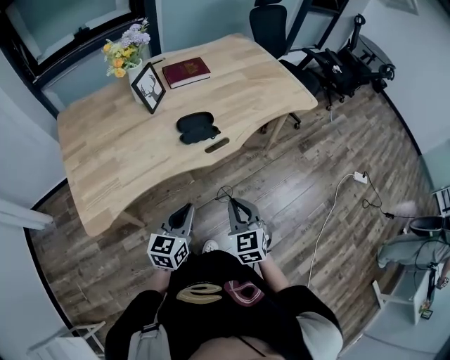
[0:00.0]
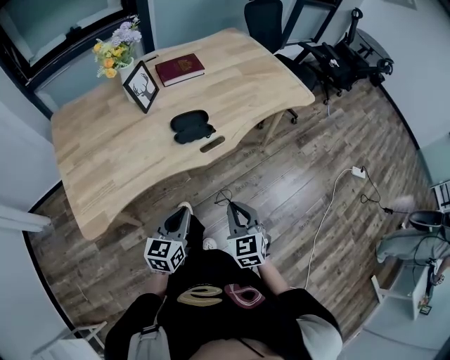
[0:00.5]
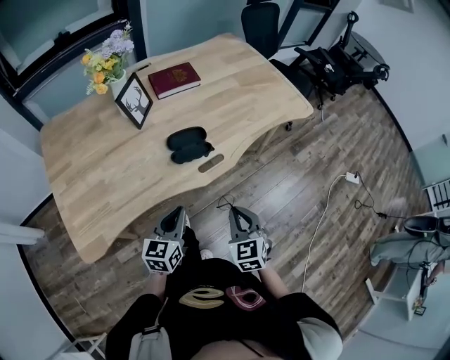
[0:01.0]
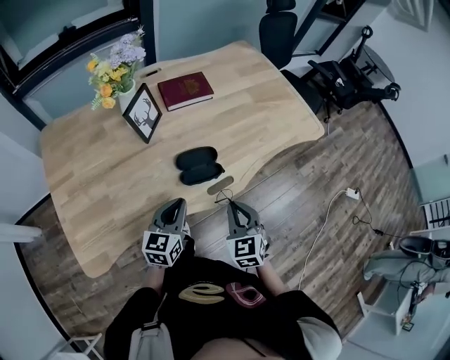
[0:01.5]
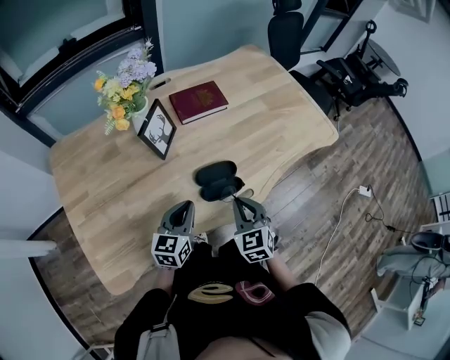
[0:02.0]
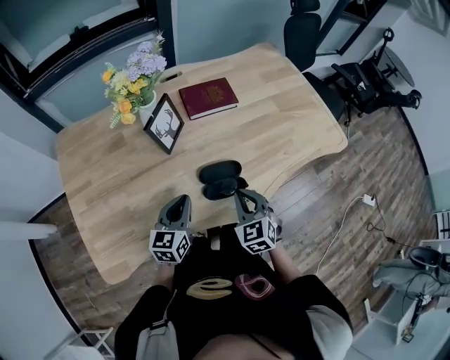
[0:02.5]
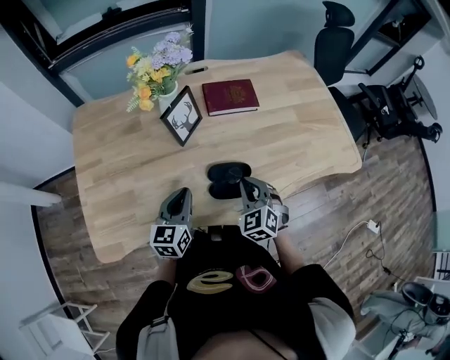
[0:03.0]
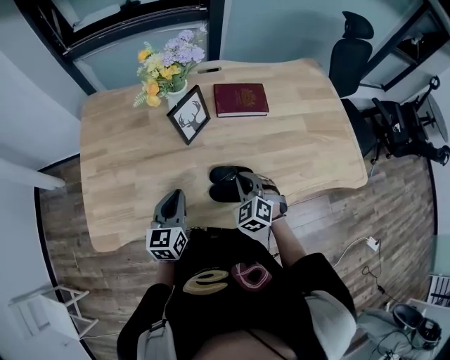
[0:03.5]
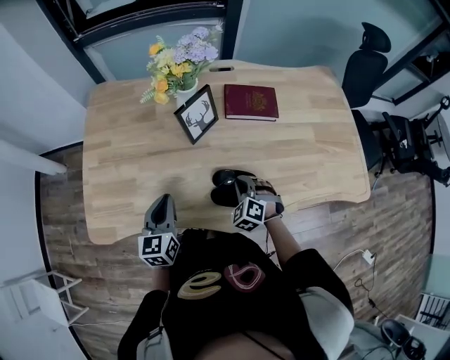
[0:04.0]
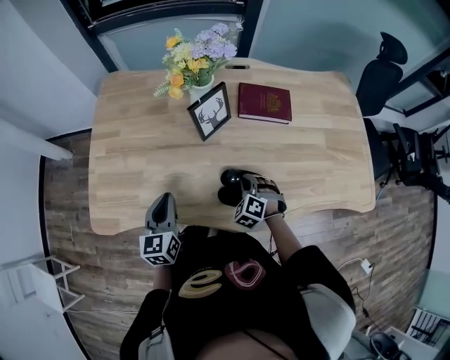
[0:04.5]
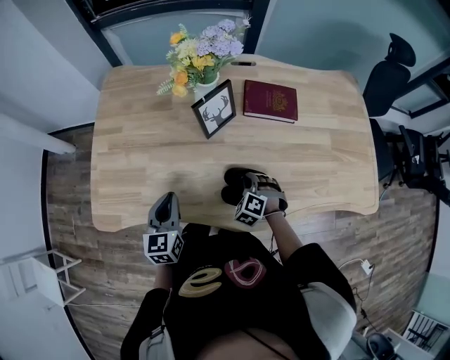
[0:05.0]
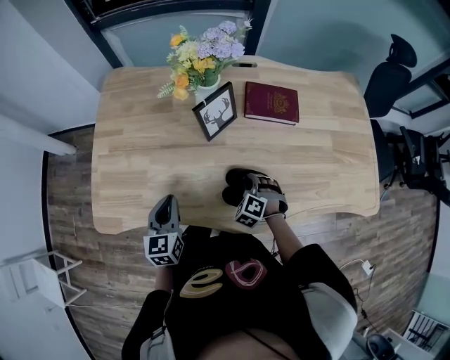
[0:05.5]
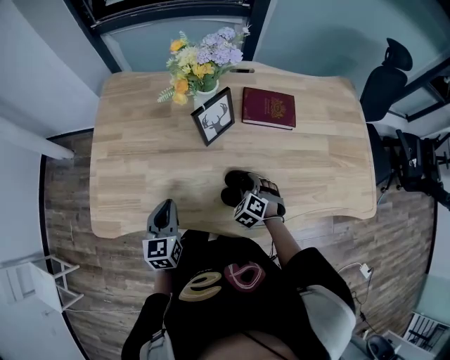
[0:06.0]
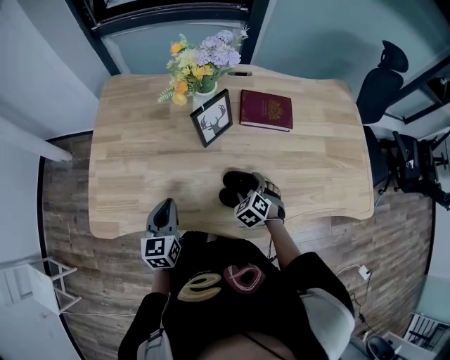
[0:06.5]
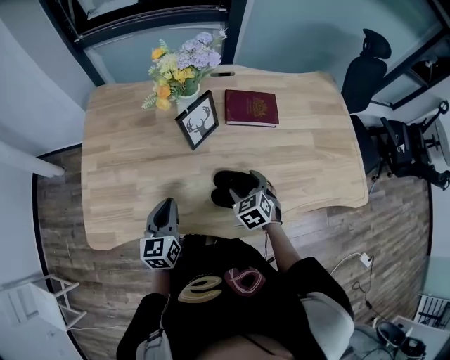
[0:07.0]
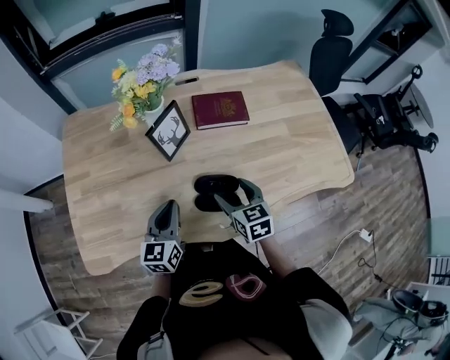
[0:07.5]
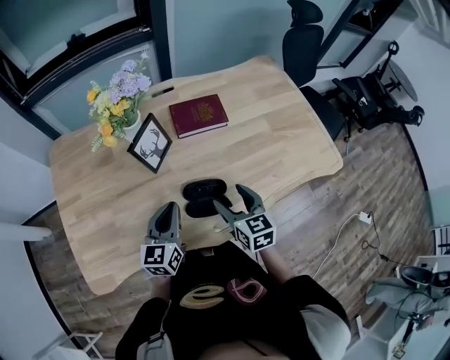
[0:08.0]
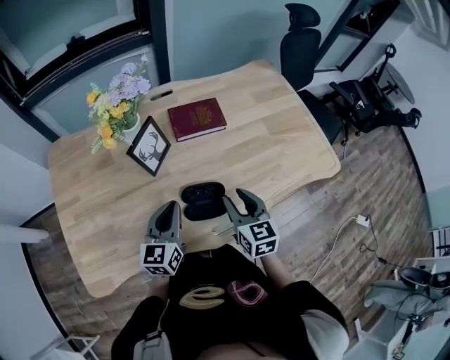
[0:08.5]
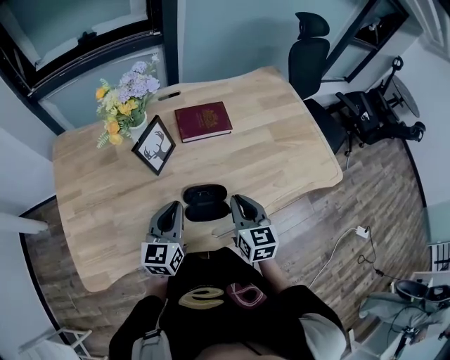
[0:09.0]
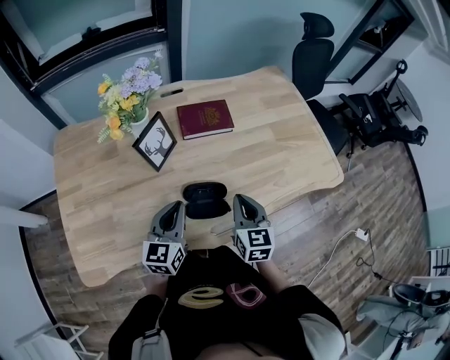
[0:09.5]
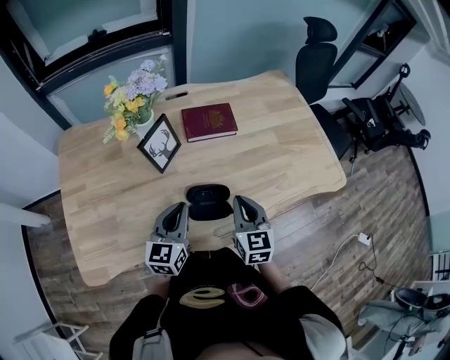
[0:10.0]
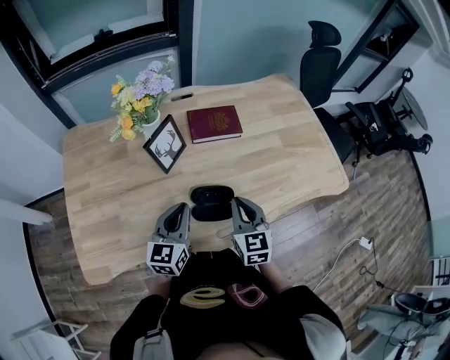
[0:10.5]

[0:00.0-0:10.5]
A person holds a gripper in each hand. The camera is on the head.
0:00.0 to 0:02.0: Both grippers travel together forward and to the left, roughly 30 cm.
0:02.0 to 0:04.0: The right gripper moves some 15 cm, and twists roughly 50 degrees counterclockwise, seen from behind, while the left gripper moves some 10 cm, and turns by roughly 40 degrees.
0:04.0 to 0:06.5: The right gripper opens its fingers.
0:06.5 to 0:08.5: The left gripper moves to the right and forward, about 15 cm, and rotates approximately 30 degrees. The right gripper is displaced upward and to the right by roughly 20 cm, rotates around the line of its fingers by roughly 50 degrees, clockwise from behind, and closes.
0:08.5 to 0:10.5: The right gripper closes up.

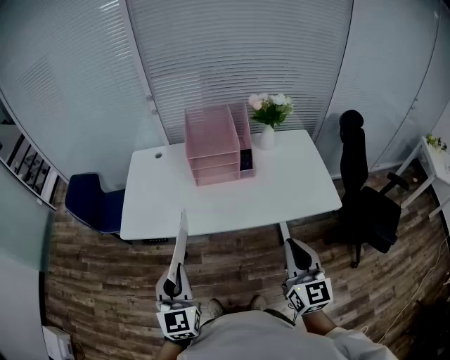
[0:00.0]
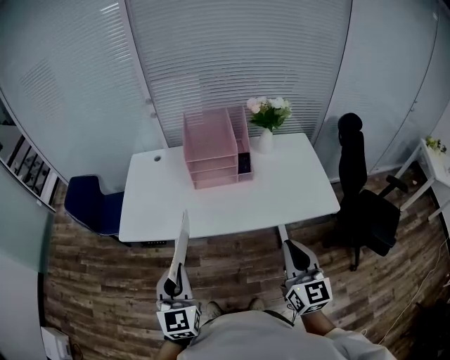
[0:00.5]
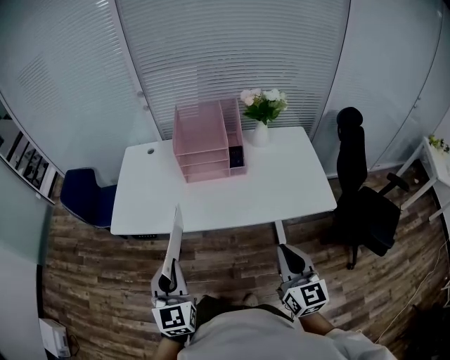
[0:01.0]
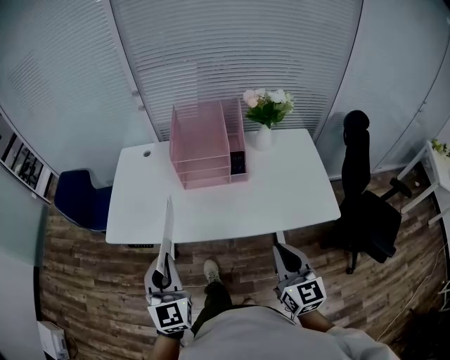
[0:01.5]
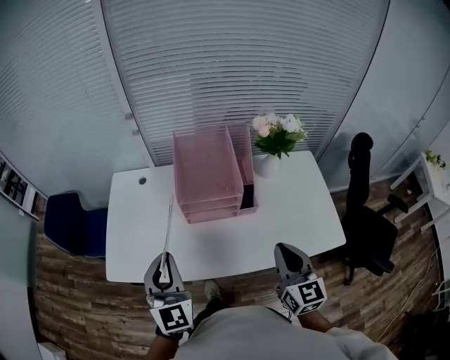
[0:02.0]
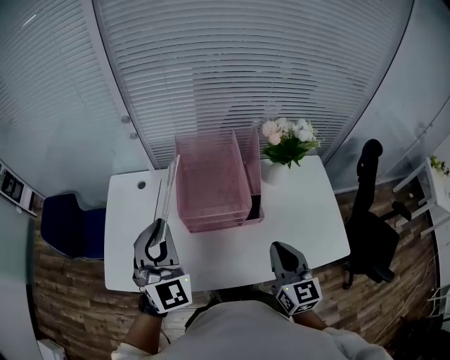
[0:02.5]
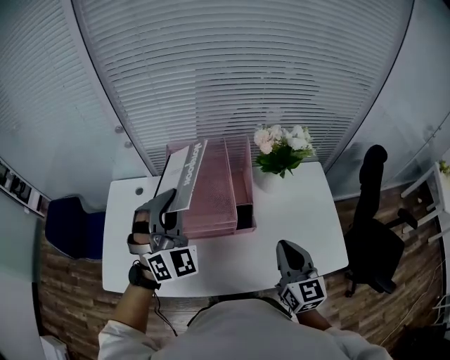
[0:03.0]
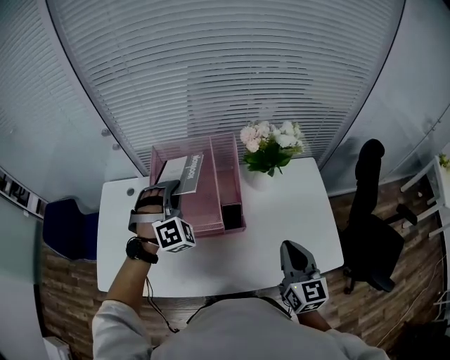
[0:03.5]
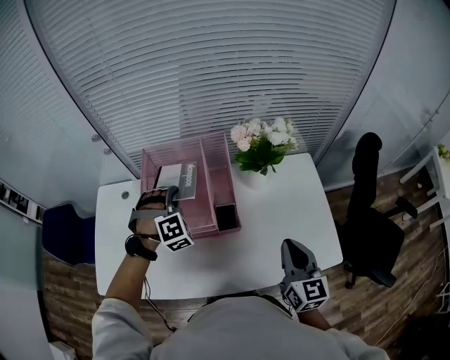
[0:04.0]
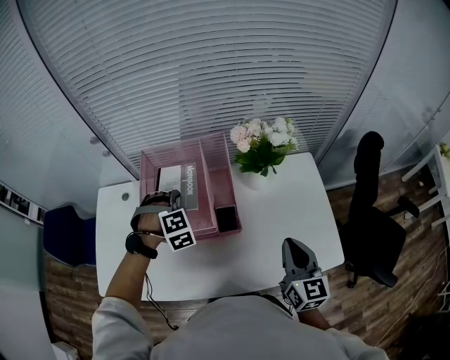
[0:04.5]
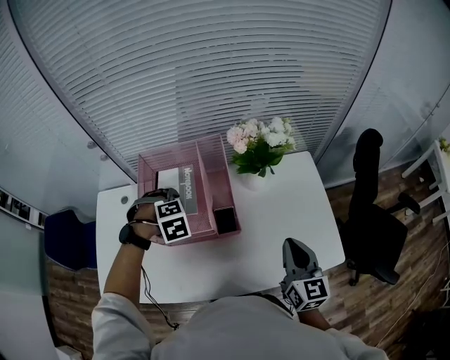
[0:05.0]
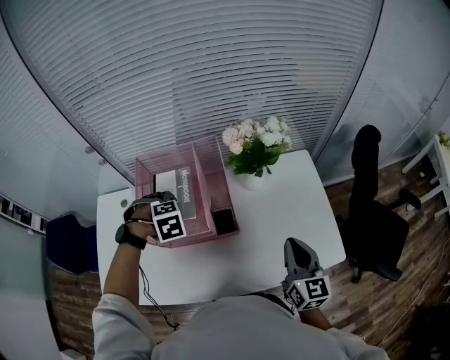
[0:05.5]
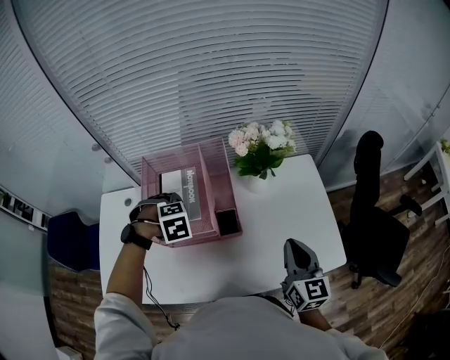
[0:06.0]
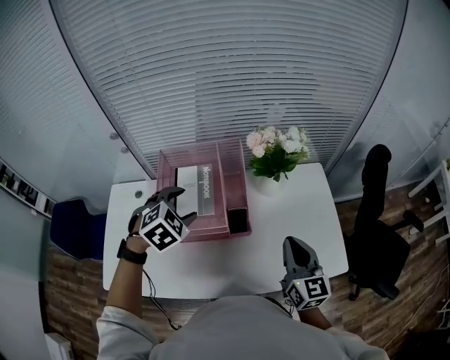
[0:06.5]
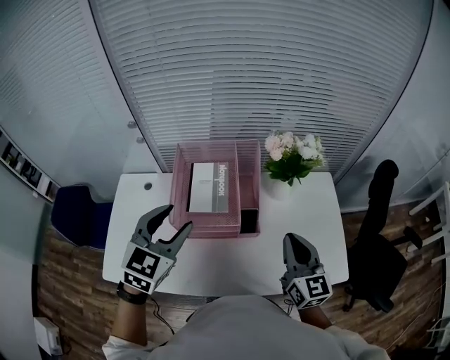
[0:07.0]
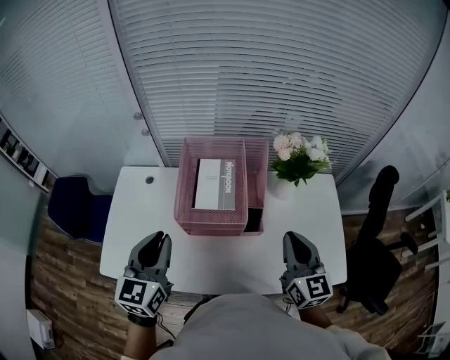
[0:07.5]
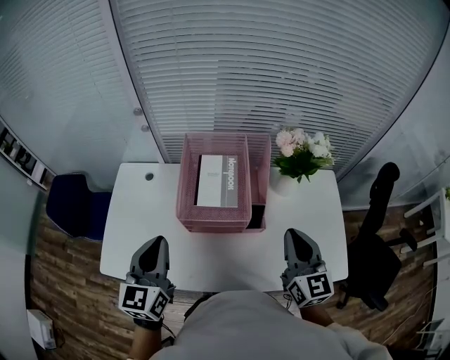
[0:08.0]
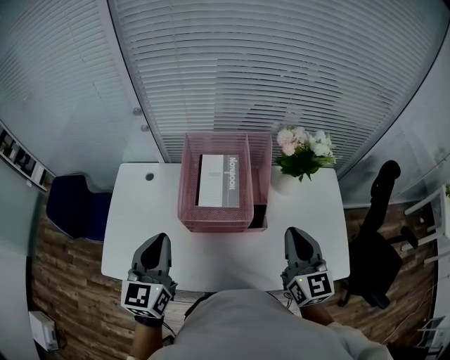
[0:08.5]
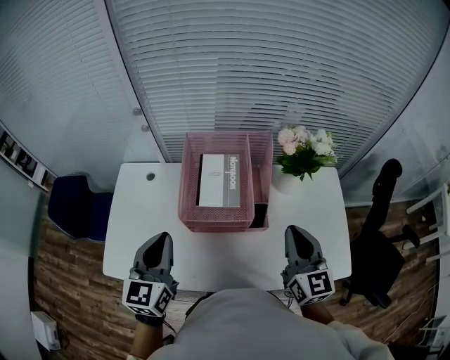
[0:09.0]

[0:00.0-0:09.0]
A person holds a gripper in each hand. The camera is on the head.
0:00.0 to 0:02.0: The grippers both shift forward by about 25 cm.
0:02.0 to 0:04.5: The right gripper shifts about 20 cm to the right and forward; the left gripper shifts approximately 35 cm forward, to the right and downward, rotates around the line of its fingers by about 70 degrees, clockwise from behind, and opens its fingers.
0:04.5 to 0:07.0: The left gripper goes approximately 20 cm upward, and tilts its fingers some 30 degrees upward. The right gripper moves about 10 cm.
0:07.0 to 0:09.0: The left gripper is displaced to the left by approximately 10 cm, swivels approximately 30 degrees, and closes up, while the right gripper changes place by some 5 cm.

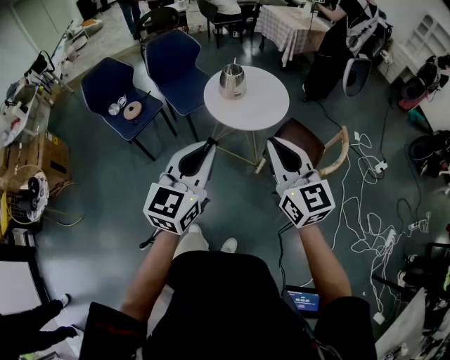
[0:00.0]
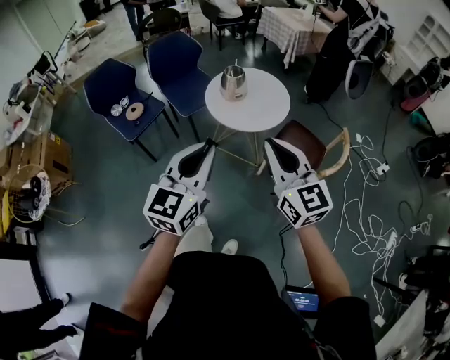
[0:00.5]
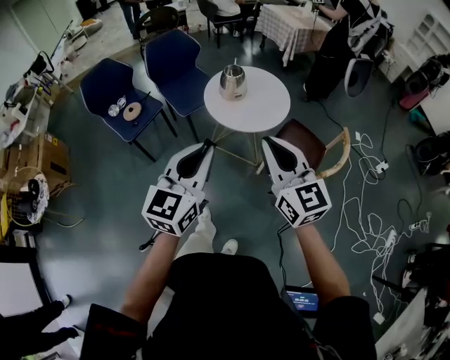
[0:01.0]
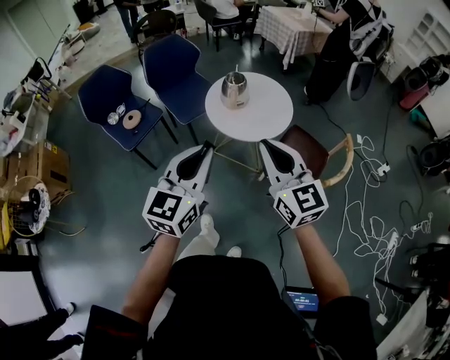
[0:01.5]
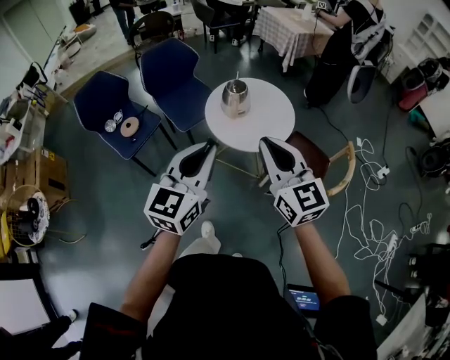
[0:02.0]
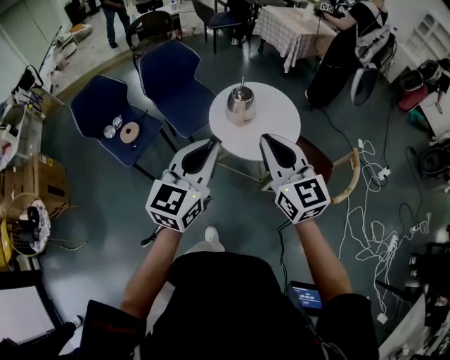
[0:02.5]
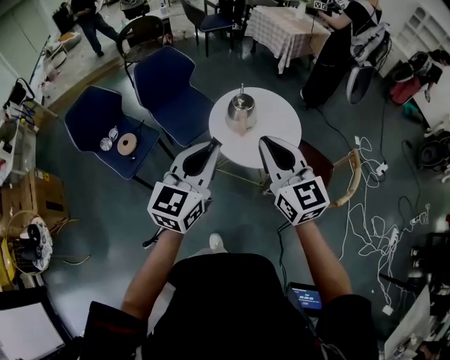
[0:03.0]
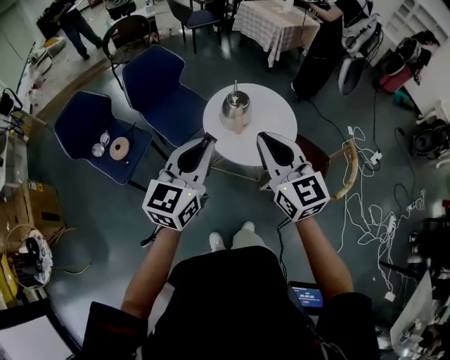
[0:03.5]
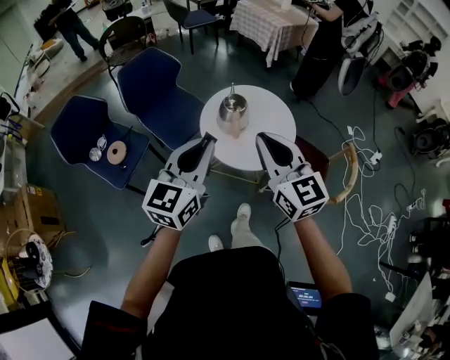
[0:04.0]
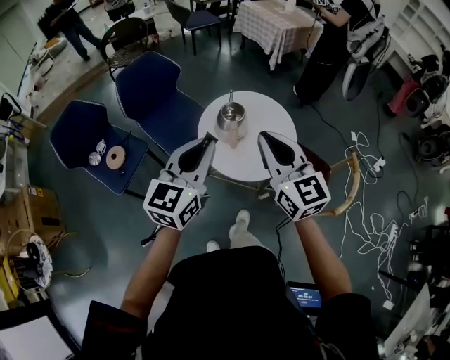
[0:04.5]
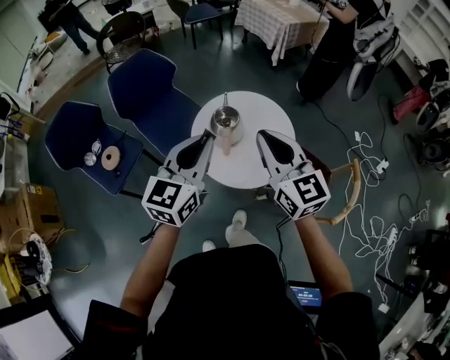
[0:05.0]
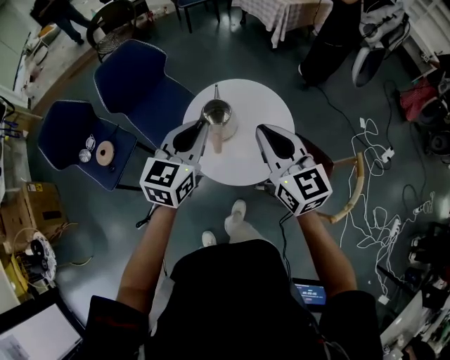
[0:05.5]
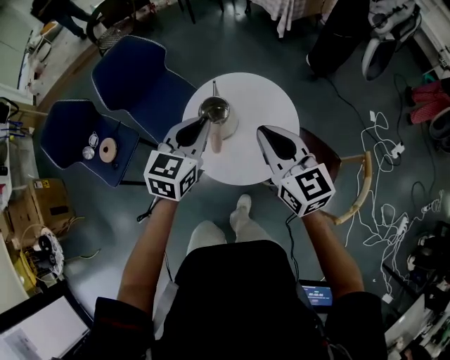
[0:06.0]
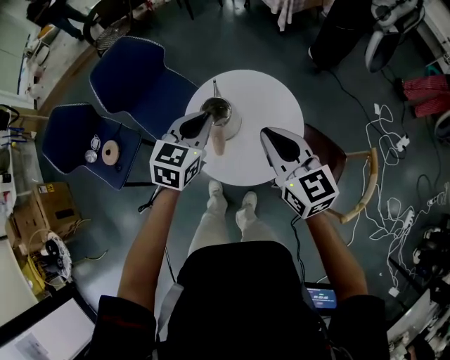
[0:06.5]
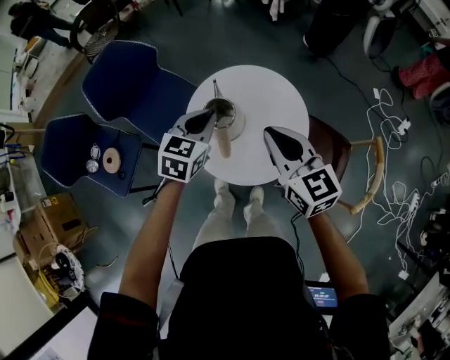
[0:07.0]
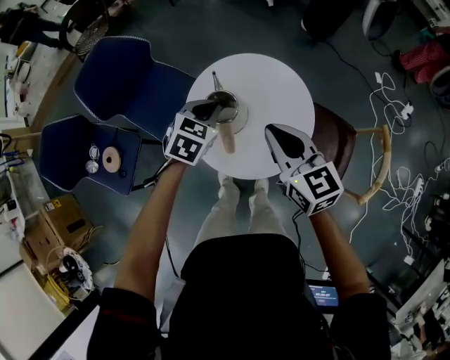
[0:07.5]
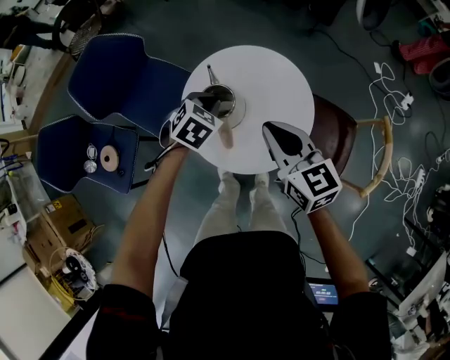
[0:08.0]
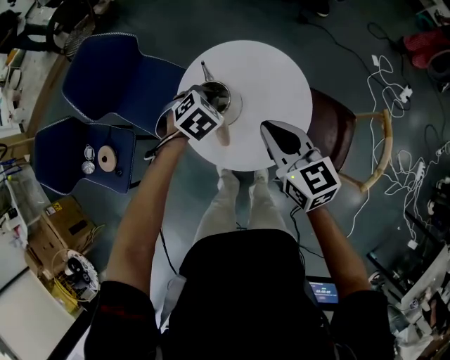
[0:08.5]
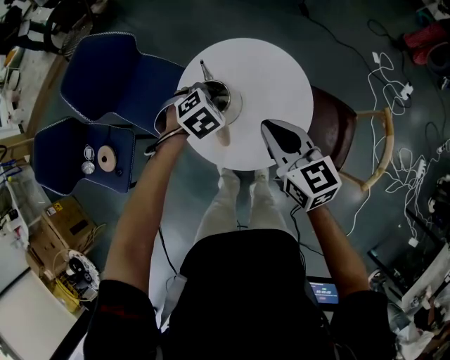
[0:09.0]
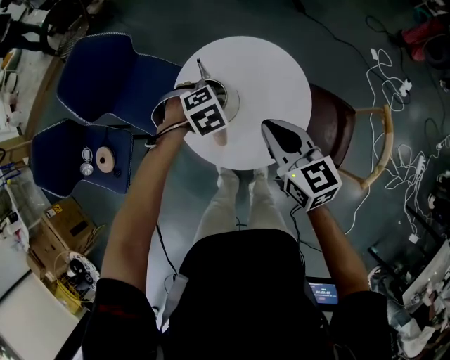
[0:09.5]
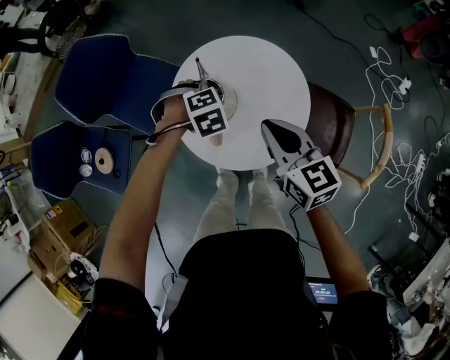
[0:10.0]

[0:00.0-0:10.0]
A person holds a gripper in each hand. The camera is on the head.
0:00.0 to 0:02.0: Both grippers move forward, approximately 15 cm.
0:02.0 to 0:04.0: The grippers both shift forward and to the left by approximately 20 cm.
0:04.0 to 0:06.0: The grippers both shift forward, to the right and downward by approximately 35 cm.
0:06.0 to 0:08.0: The right gripper goes some 10 cm downward and forward. The left gripper heads downward and forward, covering some 20 cm, and points its fingers approximately 40 degrees further downward.
0:08.0 to 0:10.0: The left gripper travels downward by roughly 5 cm, and changes its angle by roughly 40 degrees.
